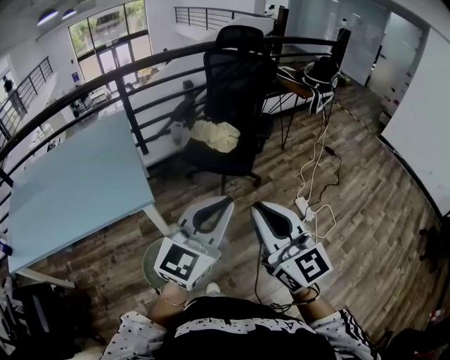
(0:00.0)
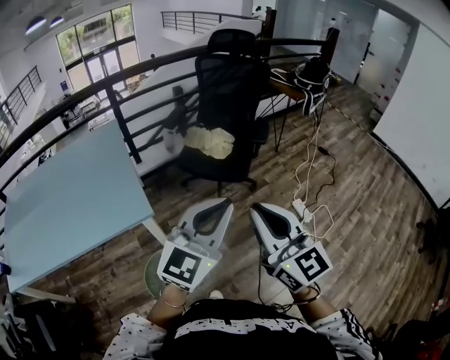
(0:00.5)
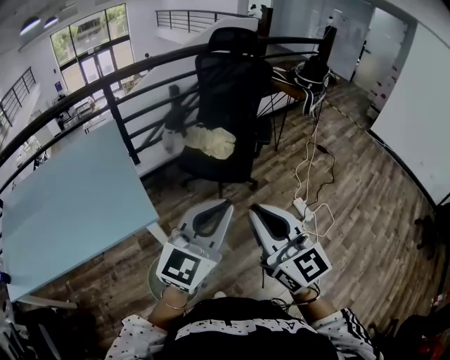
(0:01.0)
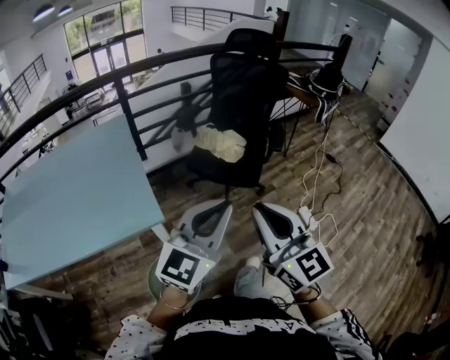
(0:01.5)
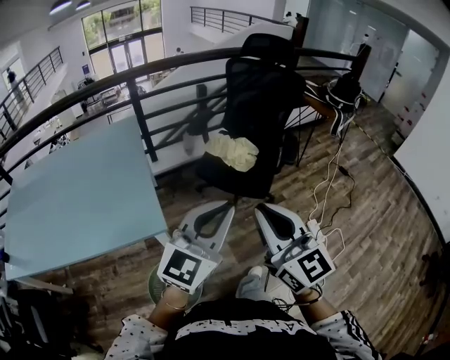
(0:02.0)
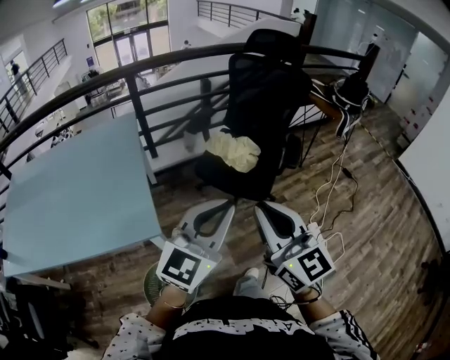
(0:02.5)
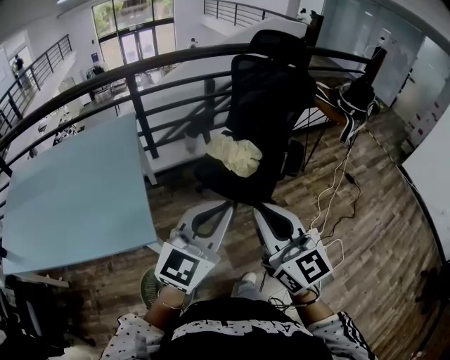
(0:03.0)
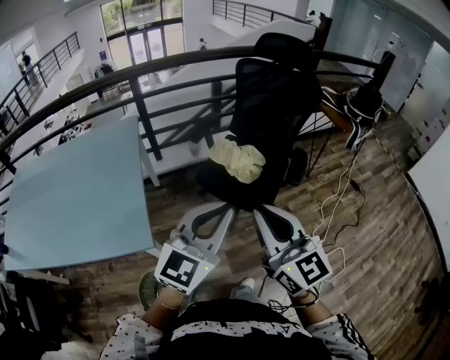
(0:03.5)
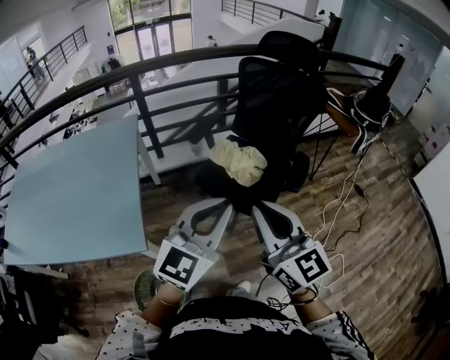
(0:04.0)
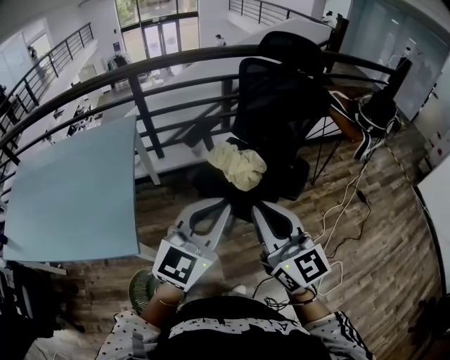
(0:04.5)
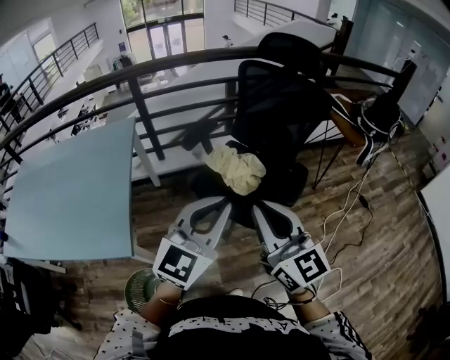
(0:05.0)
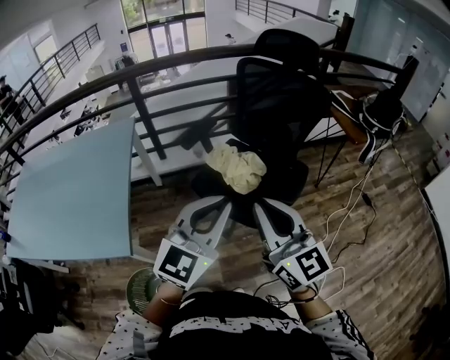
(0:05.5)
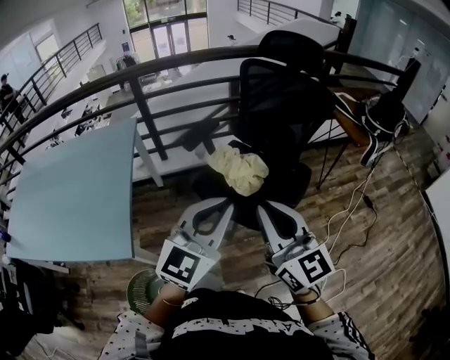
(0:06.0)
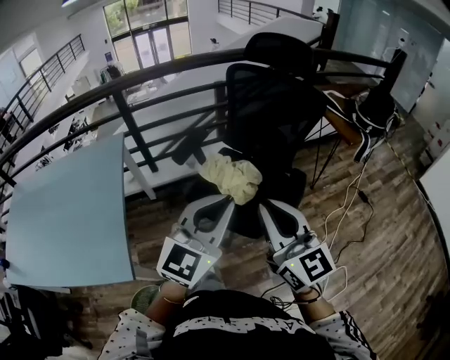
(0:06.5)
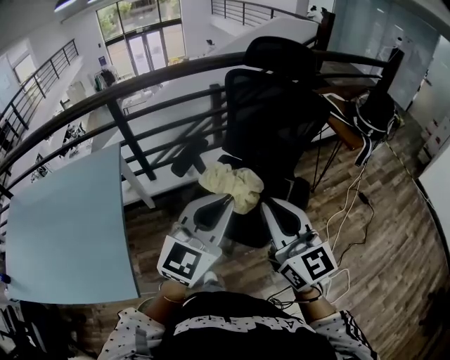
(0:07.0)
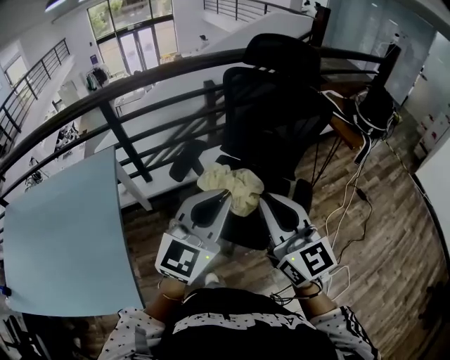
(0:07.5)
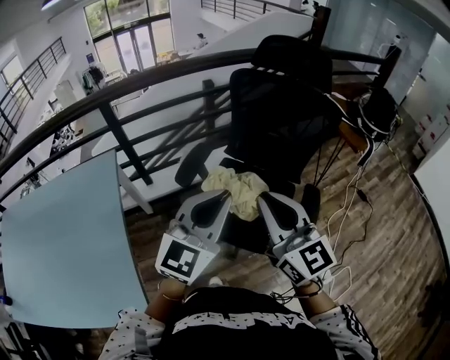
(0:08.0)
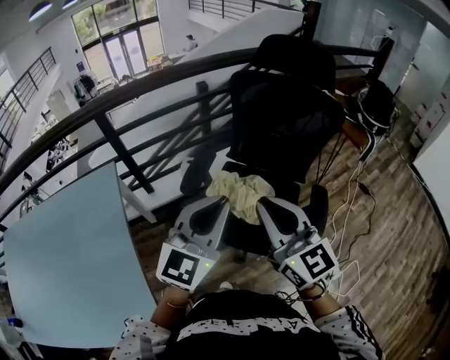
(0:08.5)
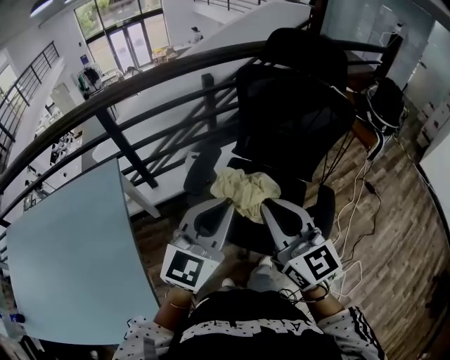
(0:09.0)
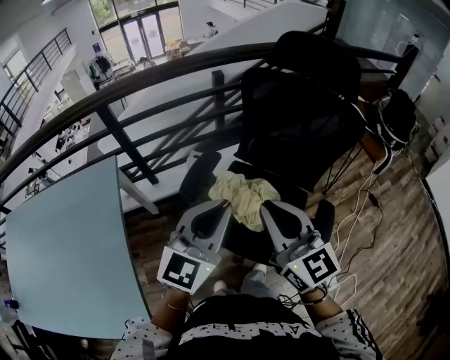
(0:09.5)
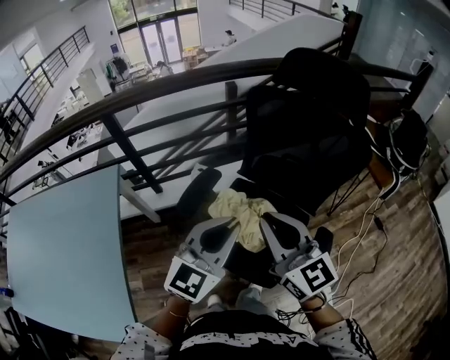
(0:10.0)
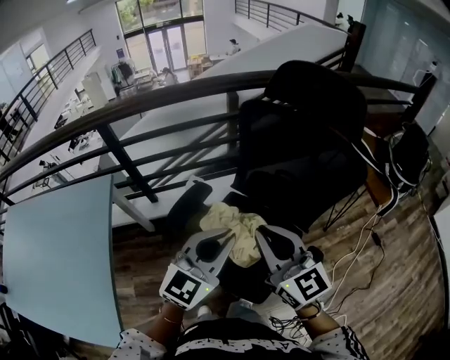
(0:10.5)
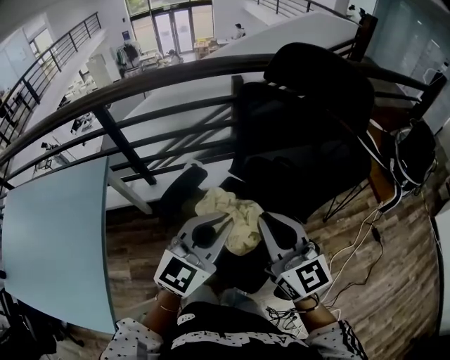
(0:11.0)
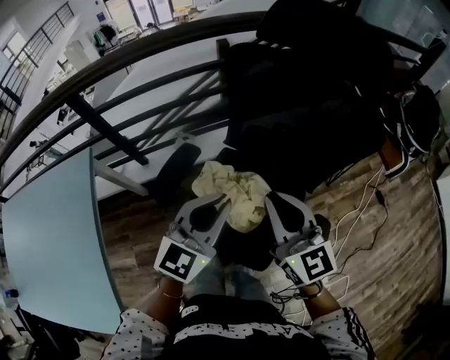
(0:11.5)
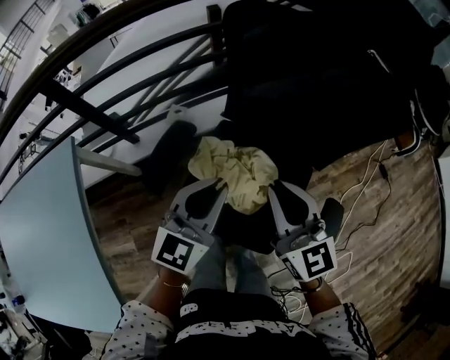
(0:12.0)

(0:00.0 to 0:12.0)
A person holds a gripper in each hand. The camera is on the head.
0:00.0 - 0:02.0: The grippers both shift forward and to the left by approximately 15 cm.
0:02.0 - 0:04.0: Both grippers travel together forward and to the right, some 20 cm.
0:04.0 - 0:06.0: The grippers both shift to the right and forward by roughly 10 cm.
0:06.0 - 0:08.0: Both grippers travel together forward and to the left, roughly 20 cm.
0:08.0 - 0:10.0: The left gripper heads forward and downward, covering about 15 cm, while the right gripper moves forward, approximately 15 cm.
0:10.0 - 0:12.0: The grippers both shift downward and forward by roughly 20 cm.

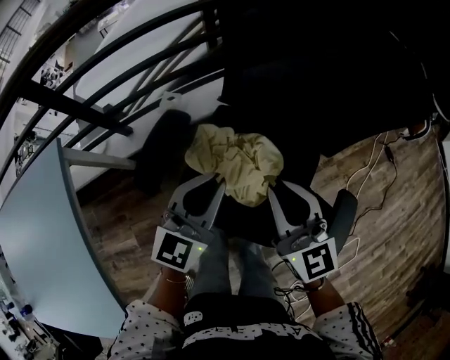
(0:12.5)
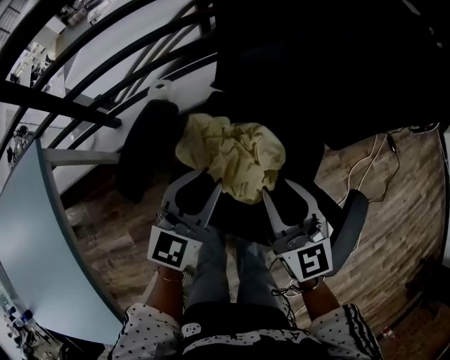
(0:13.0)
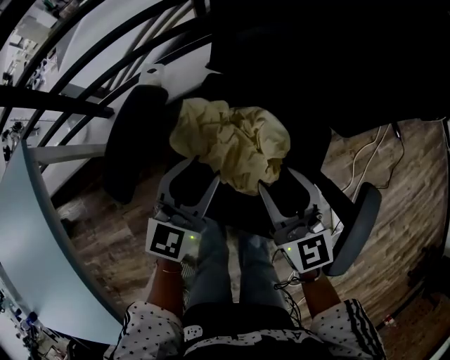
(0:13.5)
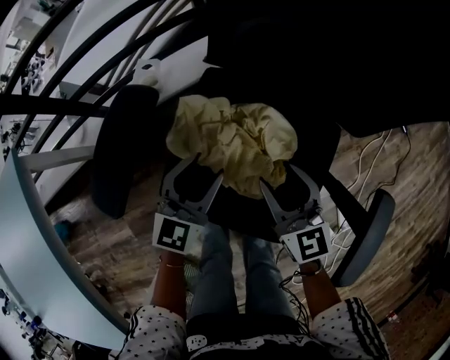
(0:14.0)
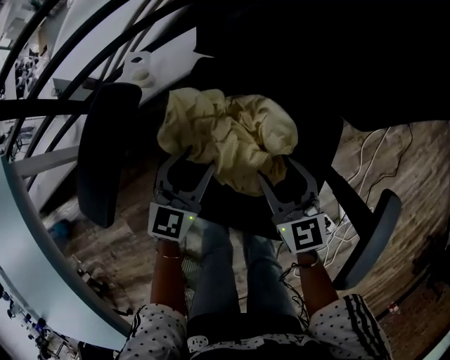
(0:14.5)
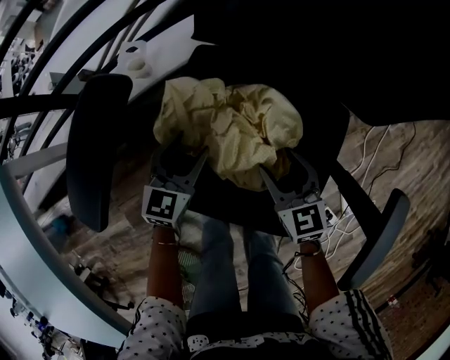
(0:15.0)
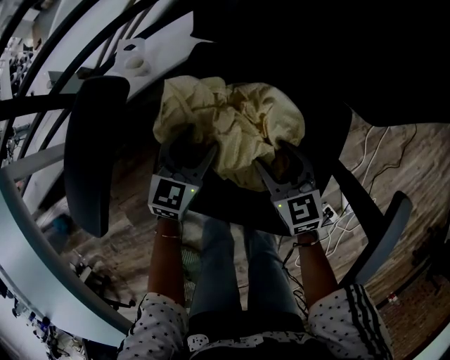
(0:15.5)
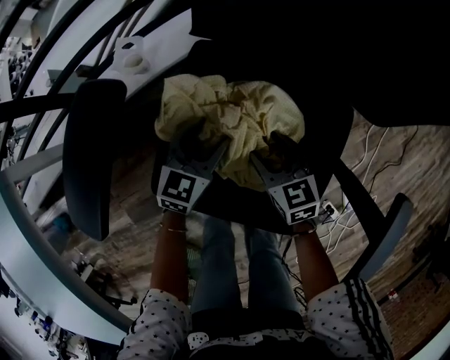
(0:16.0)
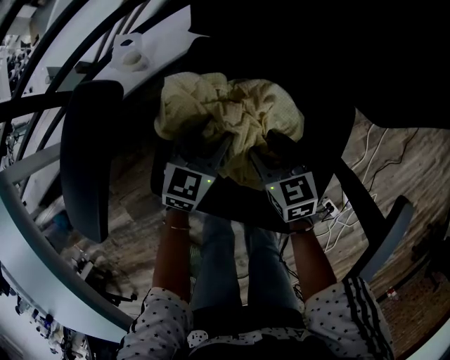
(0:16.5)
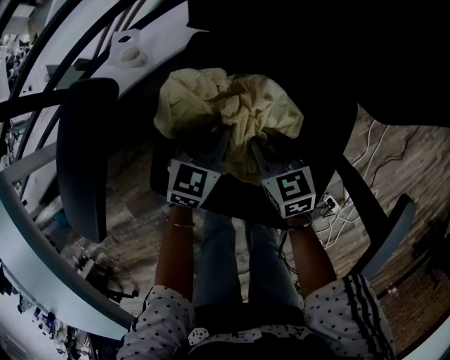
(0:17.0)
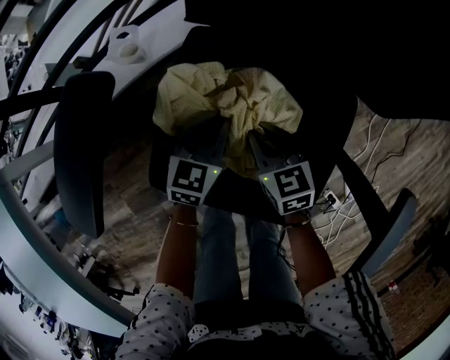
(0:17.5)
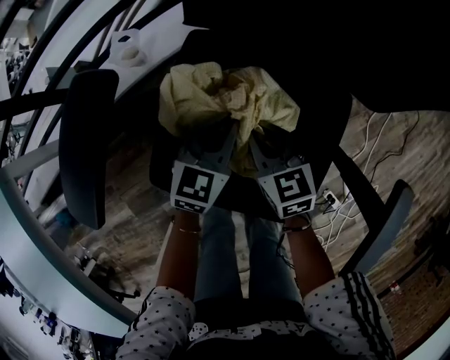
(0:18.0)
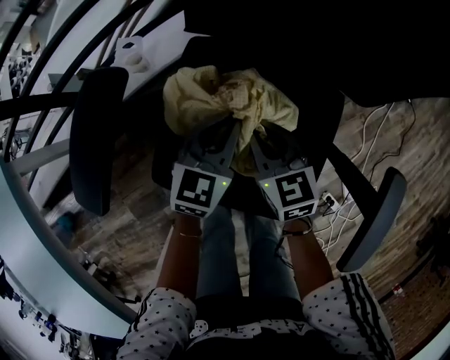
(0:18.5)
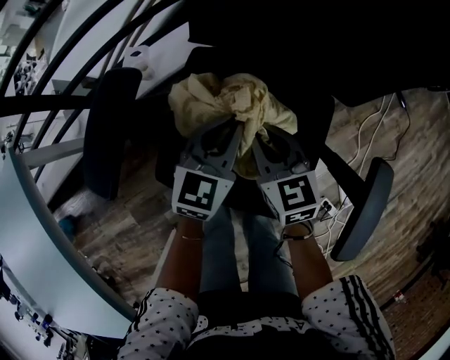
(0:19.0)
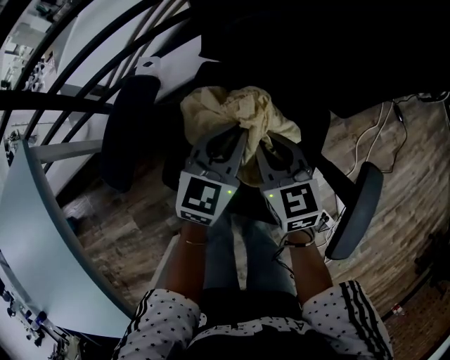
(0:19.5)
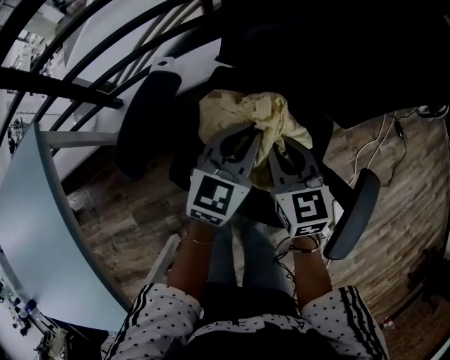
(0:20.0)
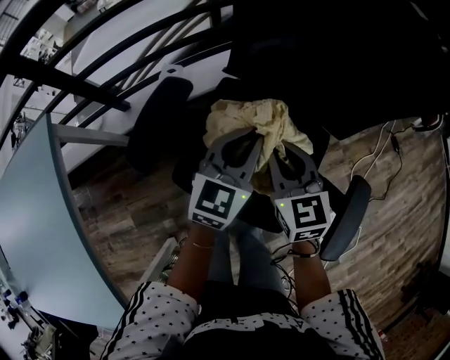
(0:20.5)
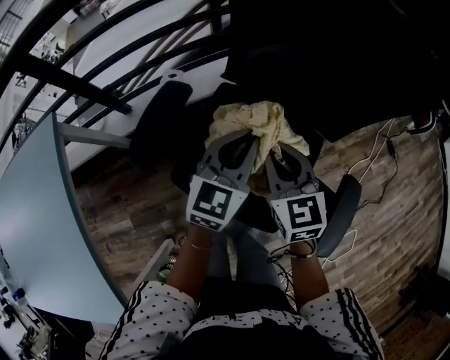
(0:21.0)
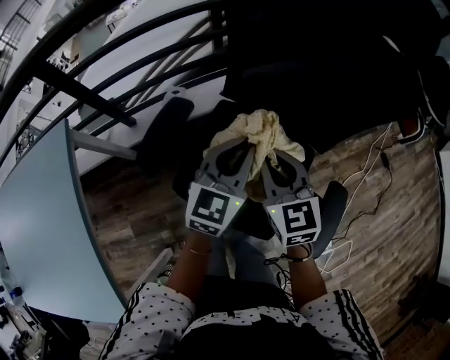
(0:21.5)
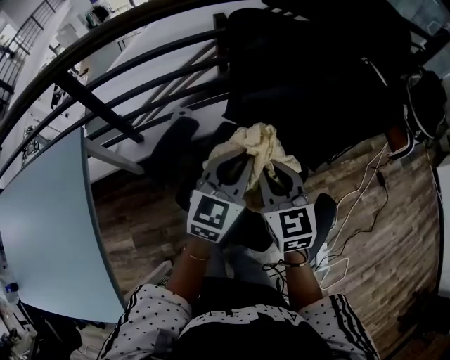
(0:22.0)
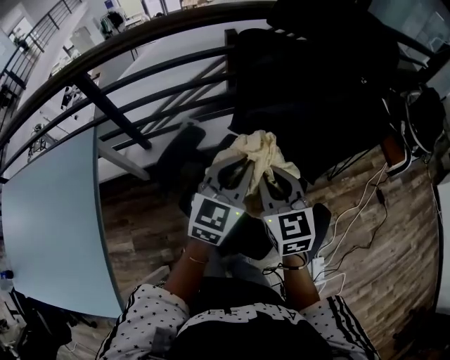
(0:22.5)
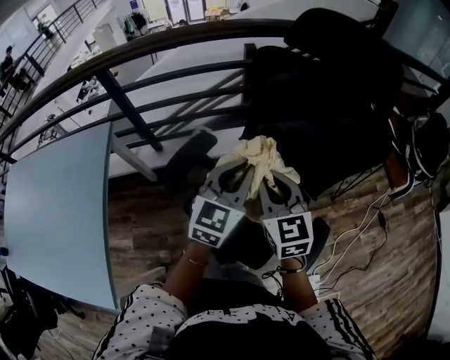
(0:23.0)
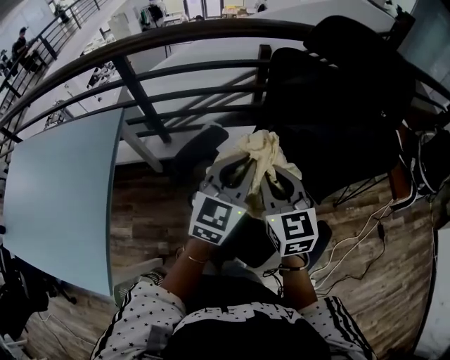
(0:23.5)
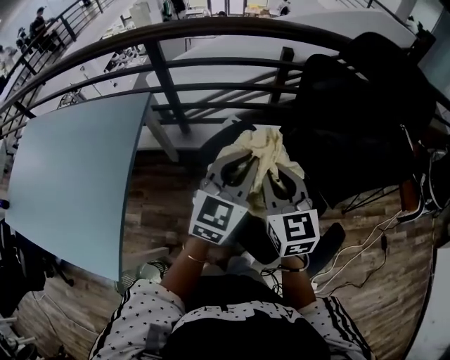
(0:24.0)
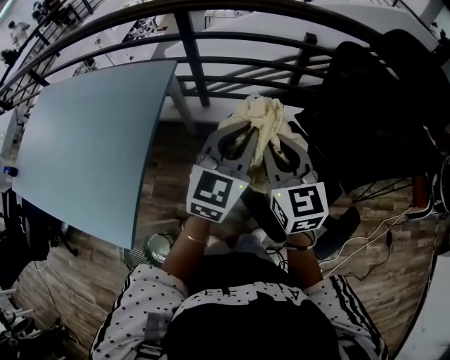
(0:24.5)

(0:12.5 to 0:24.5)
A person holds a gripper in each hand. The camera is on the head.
0:12.5 - 0:14.5: Both grippers move downward, roughly 25 cm. The right gripper opens its fingers. The left gripper opens up.
0:14.5 - 0:16.5: Both grippers move downward, some 10 cm.
0:16.5 - 0:18.5: Both grippers travel together upward, roughly 10 cm. The left gripper closes; the right gripper closes up.
0:18.5 - 0:20.5: The grippers both shift upward by roughly 20 cm.
0:20.5 - 0:22.5: The two grippers go approximately 15 cm upward.
0:22.5 - 0:24.5: The grippers both shift to the left by approximately 20 cm. The left gripper turns by about 20 degrees. Meanwhile the right gripper turns by some 20 degrees.

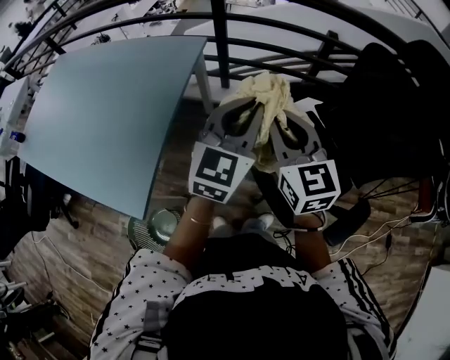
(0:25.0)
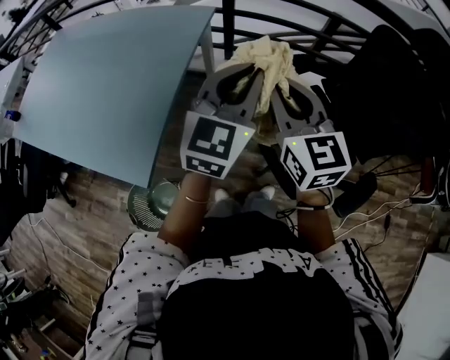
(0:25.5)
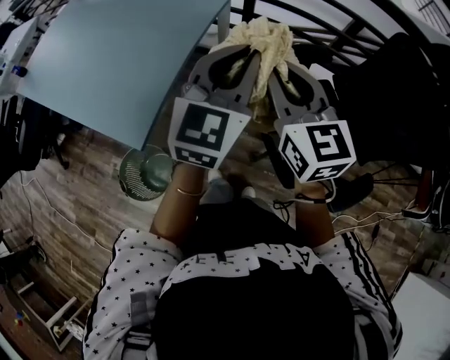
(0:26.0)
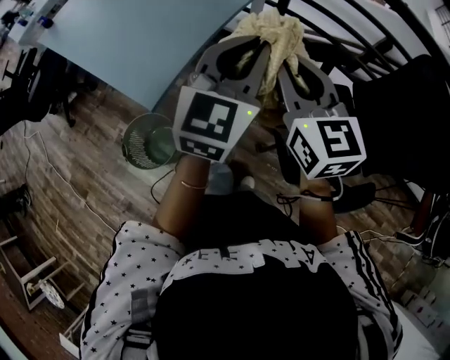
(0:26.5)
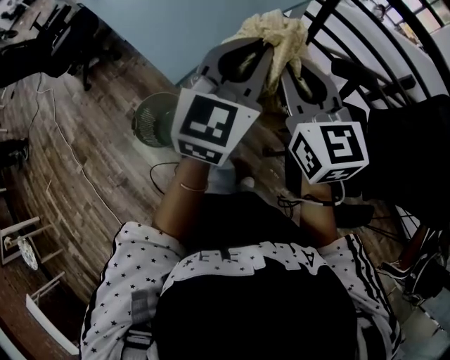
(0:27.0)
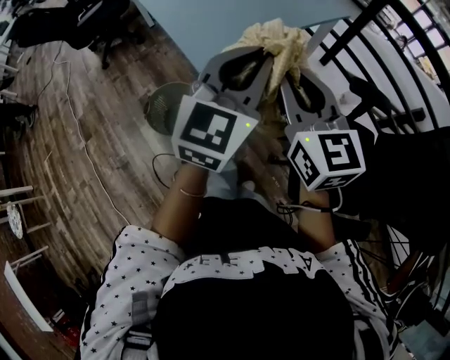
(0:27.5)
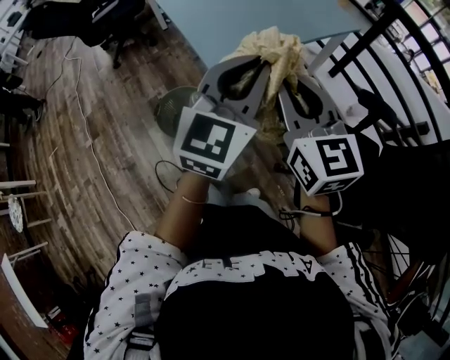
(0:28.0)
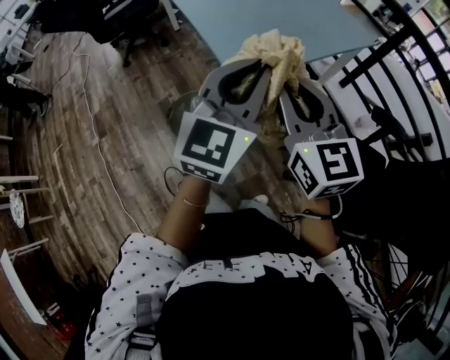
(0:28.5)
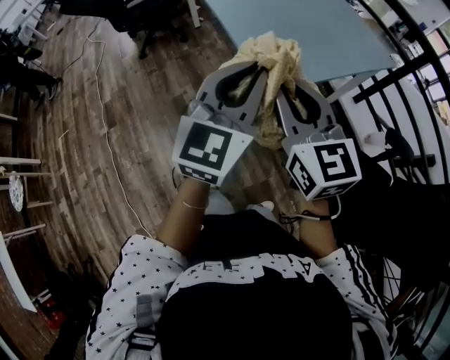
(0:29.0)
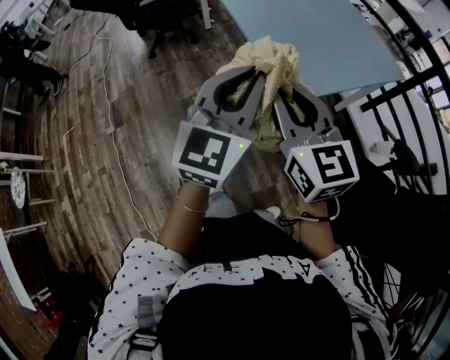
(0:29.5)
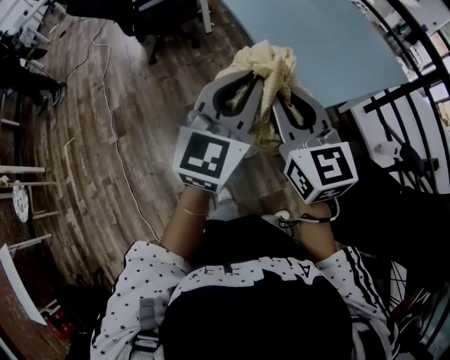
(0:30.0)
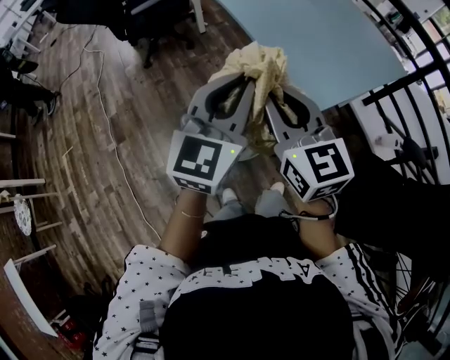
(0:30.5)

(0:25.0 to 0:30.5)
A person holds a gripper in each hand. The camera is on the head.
0:25.0 - 0:27.0: The left gripper changes place by some 25 cm, and turns by some 30 degrees. Meanwhile the right gripper ends up roughly 25 cm from where it was, and swivels approximately 30 degrees.
0:27.0 - 0:28.5: The two grippers go approximately 15 cm to the left.
0:28.5 - 0:30.5: The two grippers go roughly 25 cm to the left.
